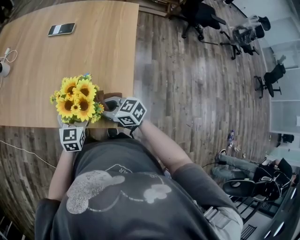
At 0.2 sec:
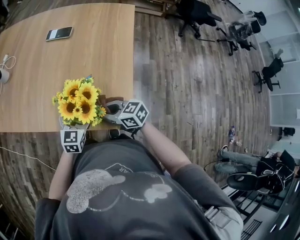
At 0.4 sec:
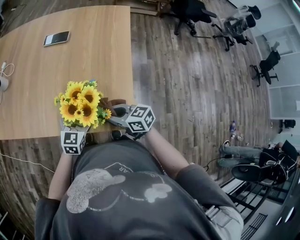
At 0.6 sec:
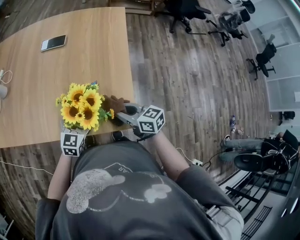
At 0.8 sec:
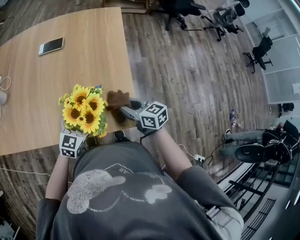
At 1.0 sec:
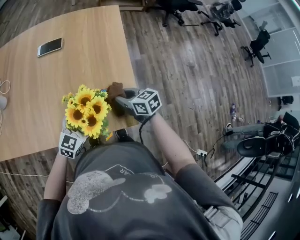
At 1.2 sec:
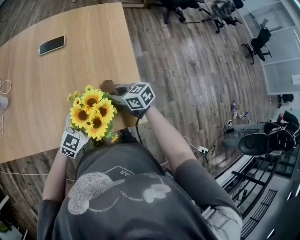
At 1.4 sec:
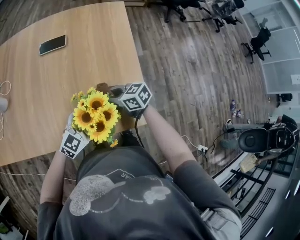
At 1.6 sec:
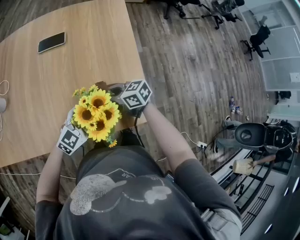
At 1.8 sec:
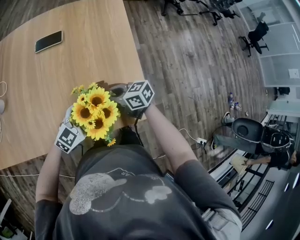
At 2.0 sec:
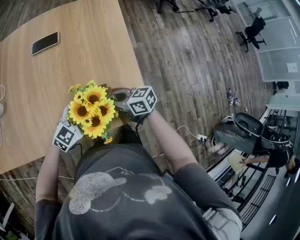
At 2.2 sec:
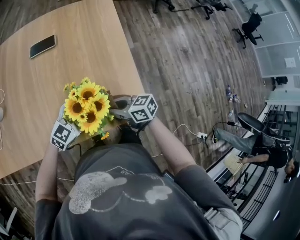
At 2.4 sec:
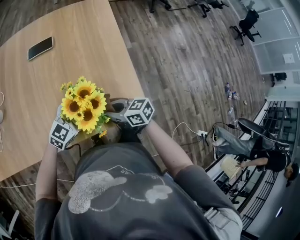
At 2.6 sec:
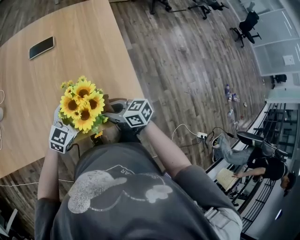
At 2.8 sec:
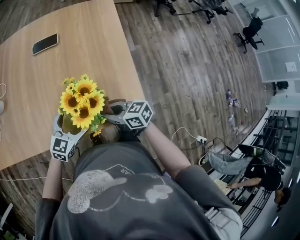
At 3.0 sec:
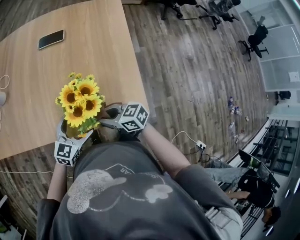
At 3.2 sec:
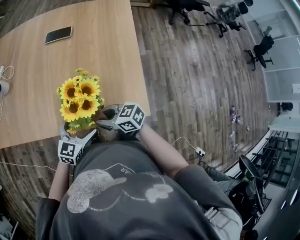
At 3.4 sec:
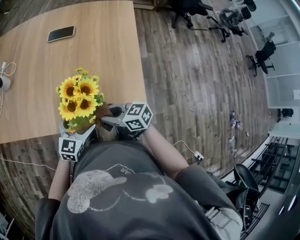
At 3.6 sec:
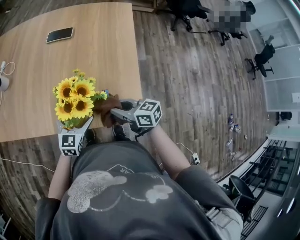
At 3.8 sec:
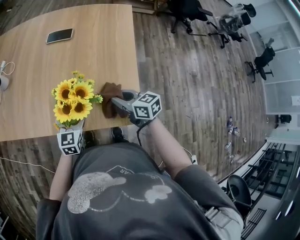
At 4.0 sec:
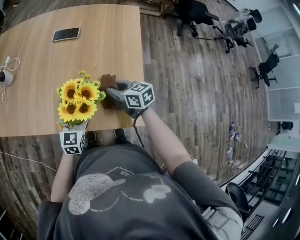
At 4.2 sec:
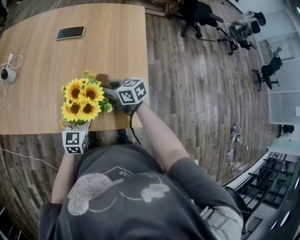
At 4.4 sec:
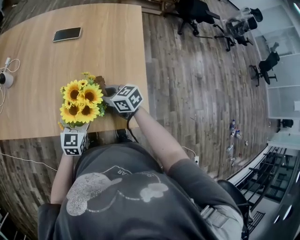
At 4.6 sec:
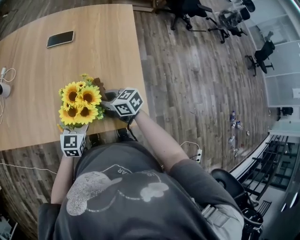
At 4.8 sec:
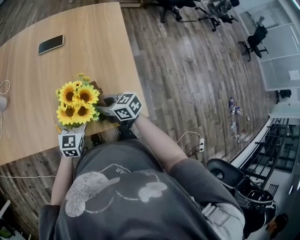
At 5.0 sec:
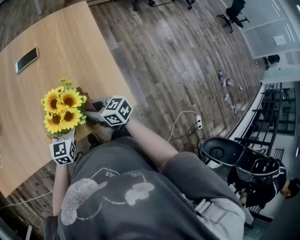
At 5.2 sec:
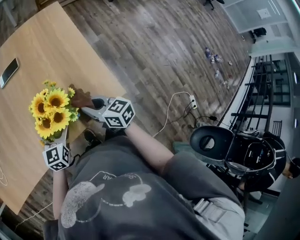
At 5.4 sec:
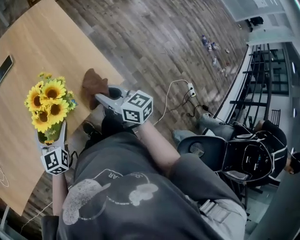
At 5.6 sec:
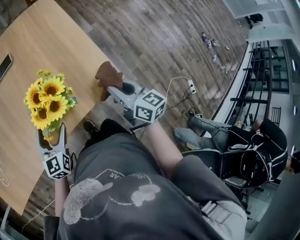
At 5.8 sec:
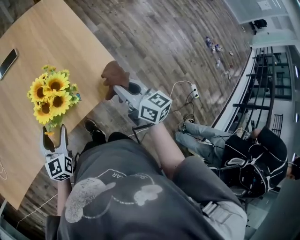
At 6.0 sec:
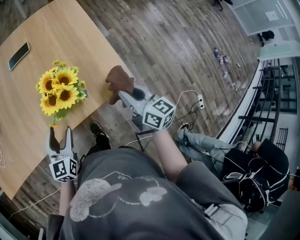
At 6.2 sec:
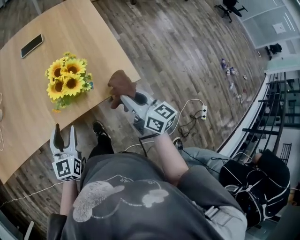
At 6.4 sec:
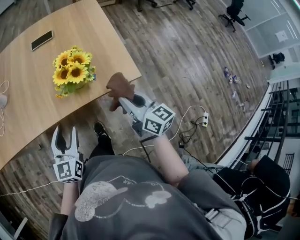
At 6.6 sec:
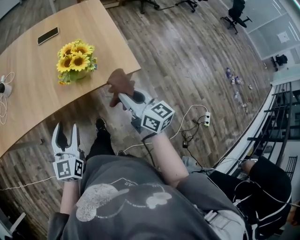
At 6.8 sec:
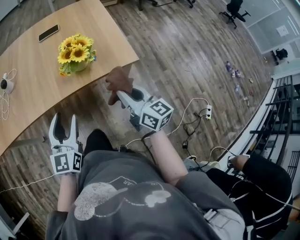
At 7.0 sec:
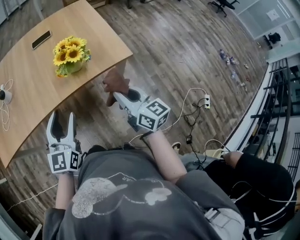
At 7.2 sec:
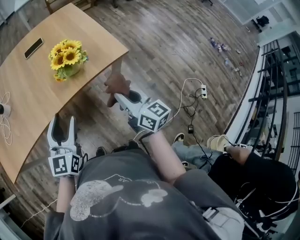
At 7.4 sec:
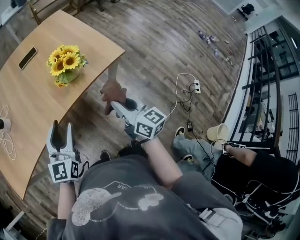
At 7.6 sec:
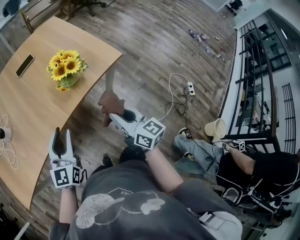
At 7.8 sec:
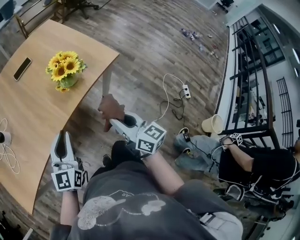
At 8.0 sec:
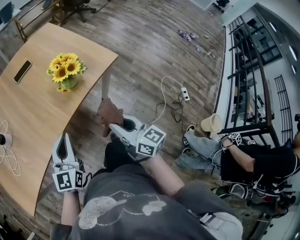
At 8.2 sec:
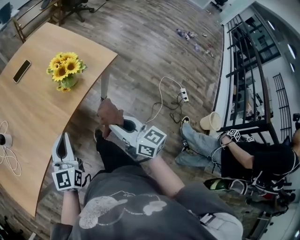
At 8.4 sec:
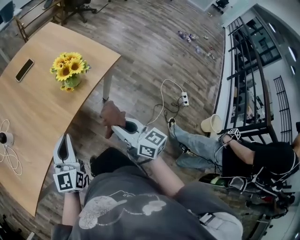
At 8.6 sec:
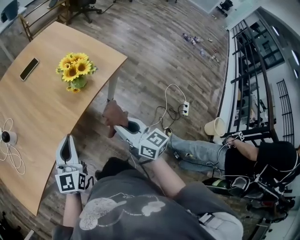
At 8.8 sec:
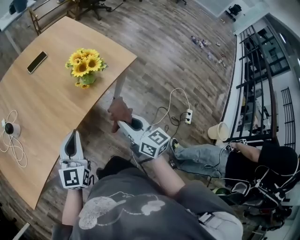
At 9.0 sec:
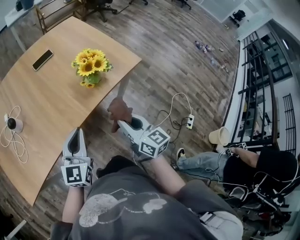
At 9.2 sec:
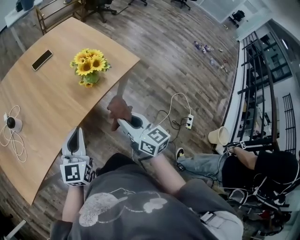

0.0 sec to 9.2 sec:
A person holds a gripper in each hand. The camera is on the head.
0.0 sec to 1.6 sec: The left gripper changes its angle by about 60 degrees. The right gripper moves approximately 10 cm.
1.6 sec to 3.0 sec: The left gripper moves some 5 cm, and swivels roughly 30 degrees, while the right gripper changes place by approximately 15 cm.
3.0 sec to 4.6 sec: The right gripper is displaced forward by approximately 10 cm, and goes to the right and returns, about 15 cm each way. Meanwhile the left gripper is displaced forward by roughly 5 cm.
4.6 sec to 6.2 sec: The right gripper ends up roughly 25 cm from where it was, and changes its angle by approximately 50 degrees. Meanwhile the left gripper shifts by roughly 15 cm.
6.2 sec to 7.6 sec: The right gripper moves backward and to the left, about 25 cm, and rotates some 20 degrees; the left gripper travels upward, to the left and backward by some 15 cm, and turns by about 30 degrees.
7.6 sec to 9.2 sec: The right gripper heads to the left, covering some 5 cm.

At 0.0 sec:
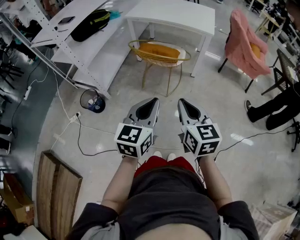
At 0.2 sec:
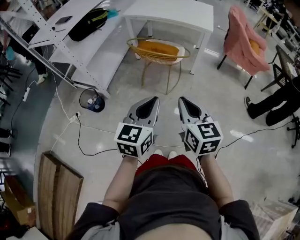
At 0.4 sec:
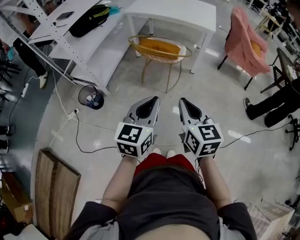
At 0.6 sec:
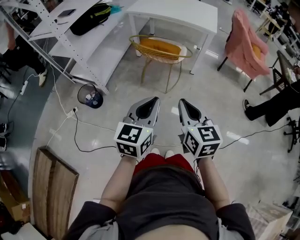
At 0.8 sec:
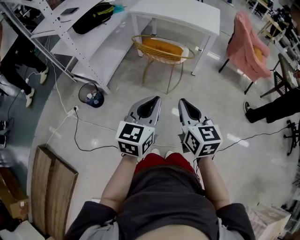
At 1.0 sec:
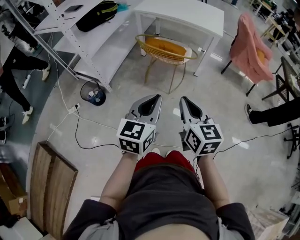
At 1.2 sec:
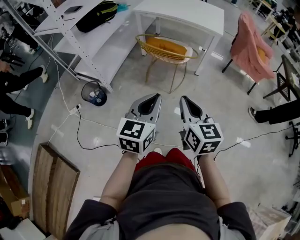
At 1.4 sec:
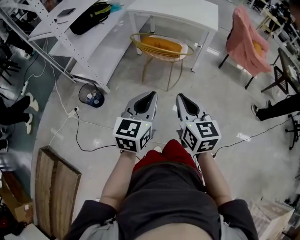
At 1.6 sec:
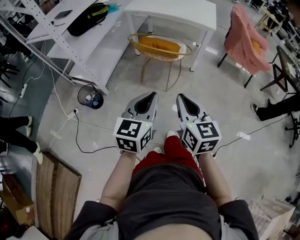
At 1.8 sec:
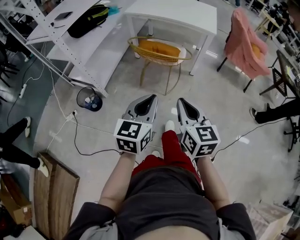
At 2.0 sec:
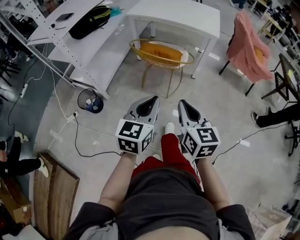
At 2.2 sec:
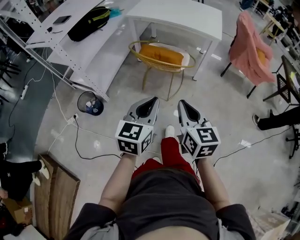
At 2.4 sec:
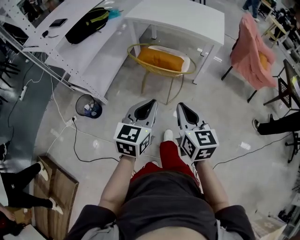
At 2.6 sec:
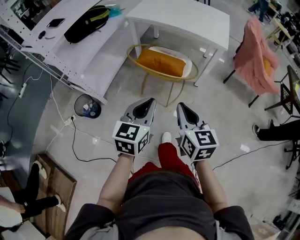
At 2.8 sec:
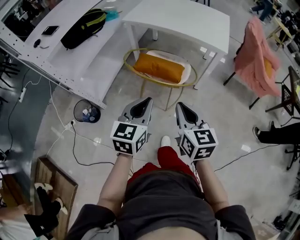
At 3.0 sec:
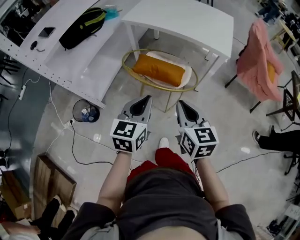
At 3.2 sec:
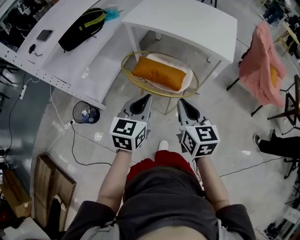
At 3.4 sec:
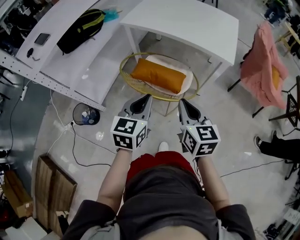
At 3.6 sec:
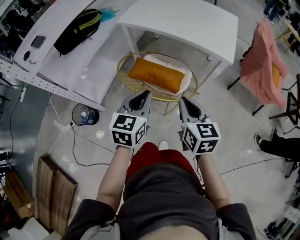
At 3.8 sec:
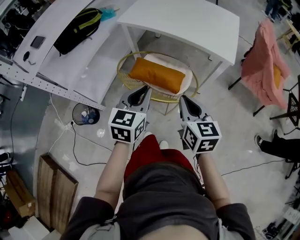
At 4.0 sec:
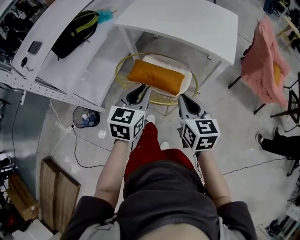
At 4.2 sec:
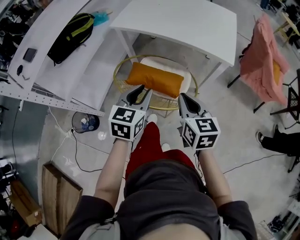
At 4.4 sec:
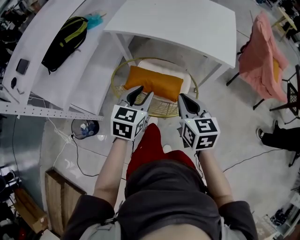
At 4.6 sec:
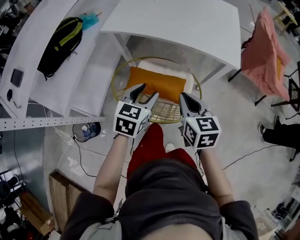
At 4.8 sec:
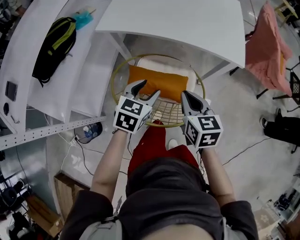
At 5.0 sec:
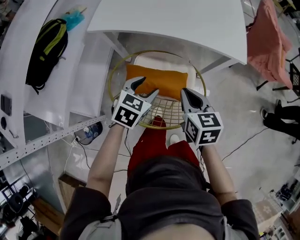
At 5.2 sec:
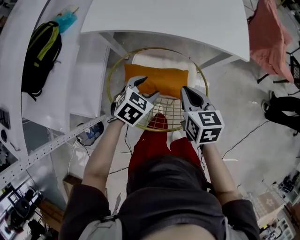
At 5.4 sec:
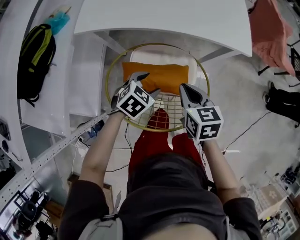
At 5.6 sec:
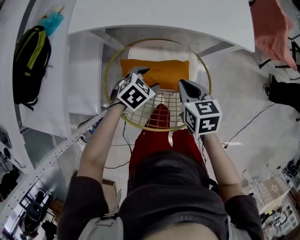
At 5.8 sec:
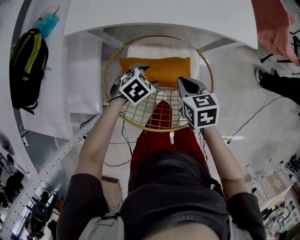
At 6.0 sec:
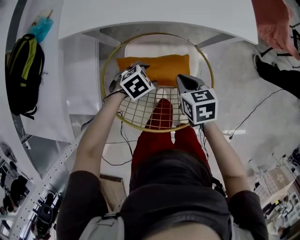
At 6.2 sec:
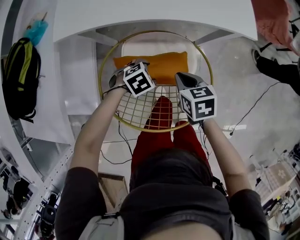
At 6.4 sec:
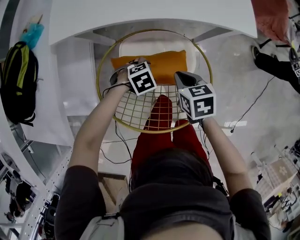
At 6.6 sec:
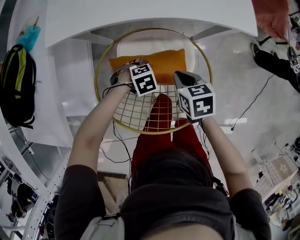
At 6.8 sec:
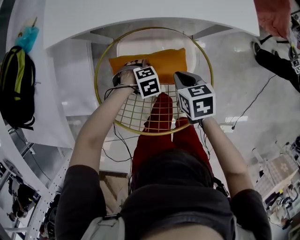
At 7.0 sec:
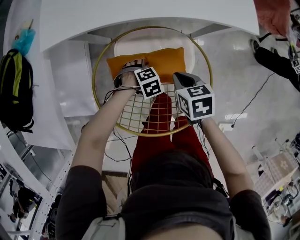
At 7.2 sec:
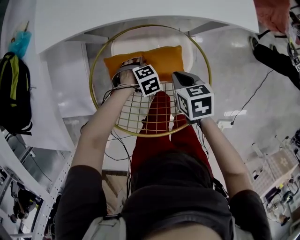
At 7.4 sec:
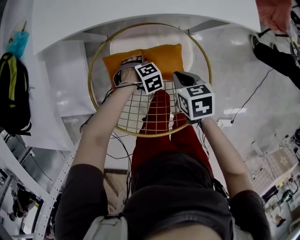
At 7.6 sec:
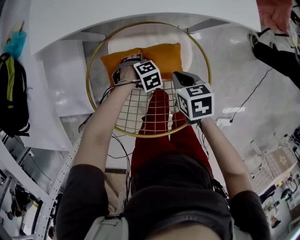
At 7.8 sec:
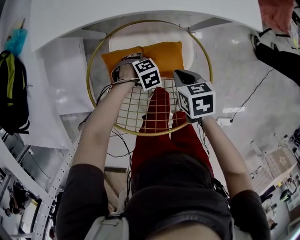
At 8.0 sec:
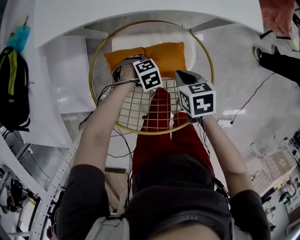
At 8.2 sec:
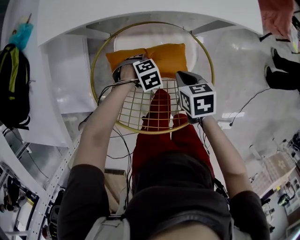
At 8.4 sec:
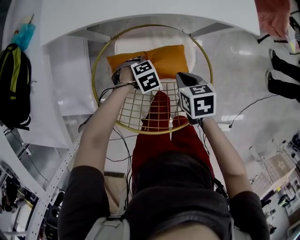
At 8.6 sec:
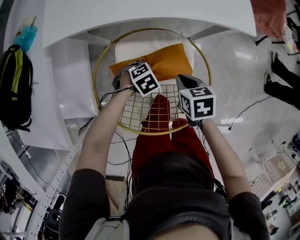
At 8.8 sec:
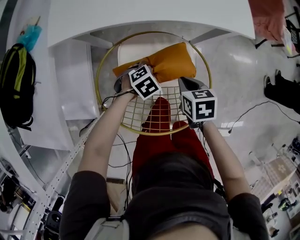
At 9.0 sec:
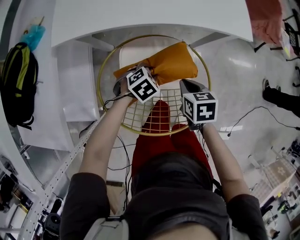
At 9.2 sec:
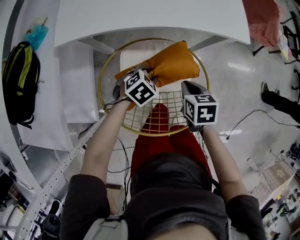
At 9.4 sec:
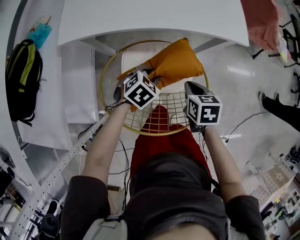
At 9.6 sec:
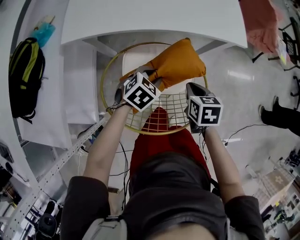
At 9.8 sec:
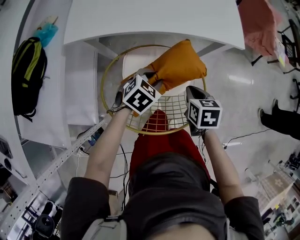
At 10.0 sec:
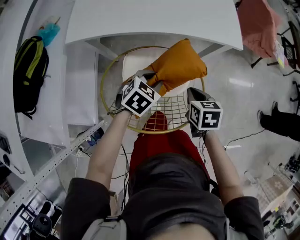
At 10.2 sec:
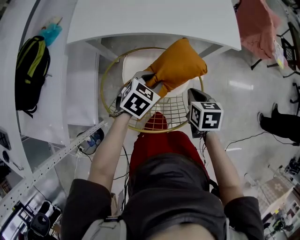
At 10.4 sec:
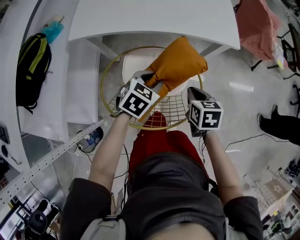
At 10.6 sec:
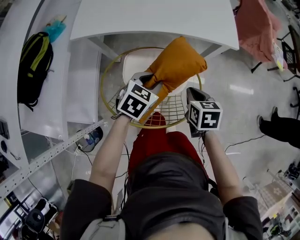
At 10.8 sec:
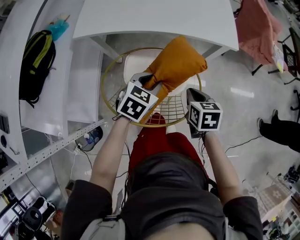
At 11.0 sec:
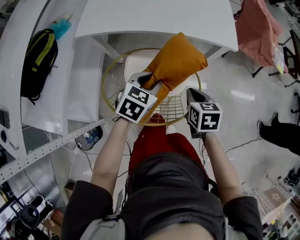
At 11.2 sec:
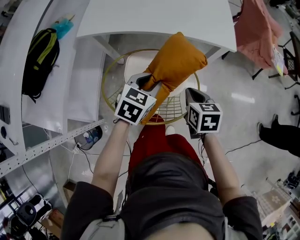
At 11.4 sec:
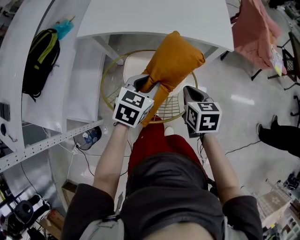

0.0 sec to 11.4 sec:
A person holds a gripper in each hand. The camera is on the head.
0.0 sec to 1.4 sec: The grippers move only a little.
1.4 sec to 2.8 sec: Both grippers travel together forward, some 25 cm.
2.8 sec to 4.2 sec: Both grippers move forward, about 20 cm.
4.2 sec to 5.6 sec: The left gripper goes approximately 20 cm downward, tilts its fingers some 30 degrees downward, and opens, while the right gripper changes place by approximately 20 cm, and swivels roughly 20 degrees.
5.6 sec to 7.2 sec: The right gripper goes about 10 cm downward, while the left gripper goes some 15 cm downward, and changes its angle by roughly 40 degrees.
7.2 sec to 8.6 sec: The left gripper closes its fingers.
8.6 sec to 10.0 sec: The right gripper moves upward, approximately 5 cm, while the left gripper moves upward, about 15 cm, and rotates some 30 degrees.
10.0 sec to 11.4 sec: Both grippers travel together upward, roughly 10 cm. The left gripper rotates about 20 degrees.

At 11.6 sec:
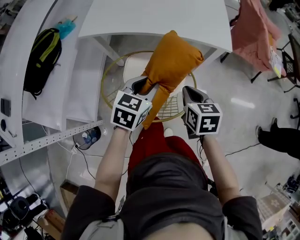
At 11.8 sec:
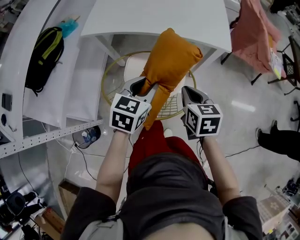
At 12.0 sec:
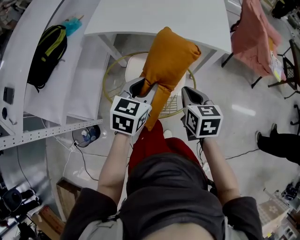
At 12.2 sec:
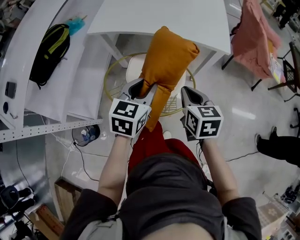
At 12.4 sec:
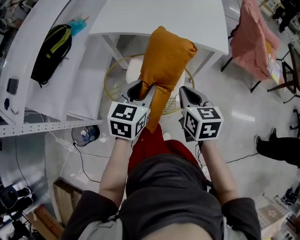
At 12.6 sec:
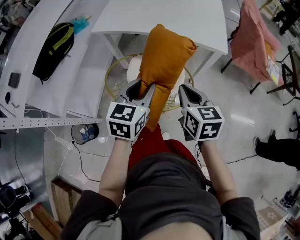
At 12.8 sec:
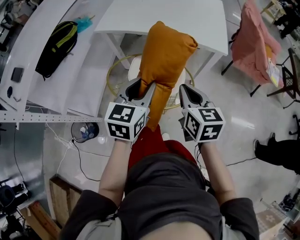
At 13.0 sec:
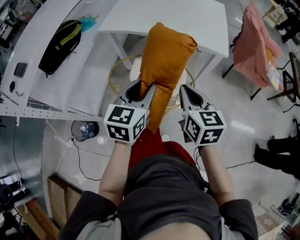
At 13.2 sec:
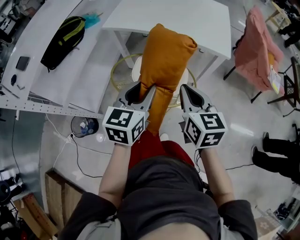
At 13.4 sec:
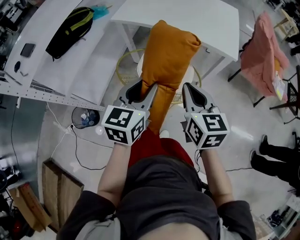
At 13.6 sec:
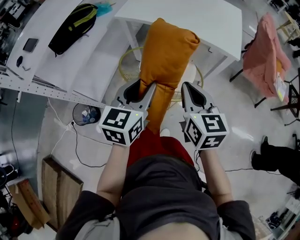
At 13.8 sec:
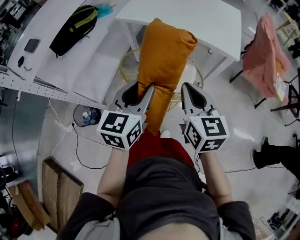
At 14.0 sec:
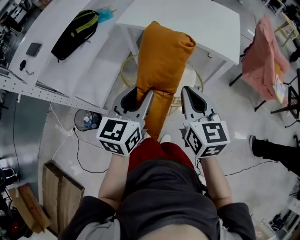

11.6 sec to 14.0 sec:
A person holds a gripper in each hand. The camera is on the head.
11.6 sec to 12.8 sec: Both grippers travel together upward and backward, approximately 10 cm. The left gripper changes its angle by approximately 20 degrees.
12.8 sec to 14.0 sec: The left gripper travels backward and to the left by some 10 cm. Meanwhile the right gripper travels upward by roughly 5 cm.
